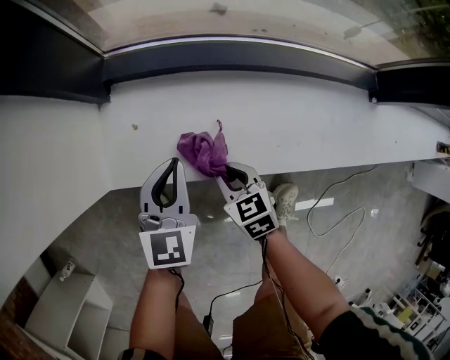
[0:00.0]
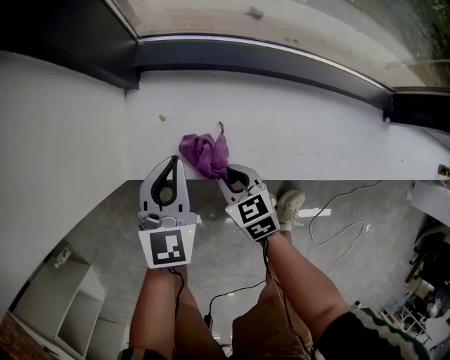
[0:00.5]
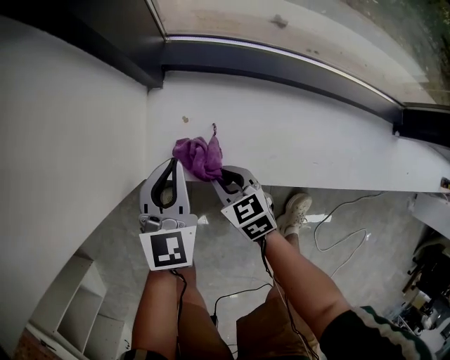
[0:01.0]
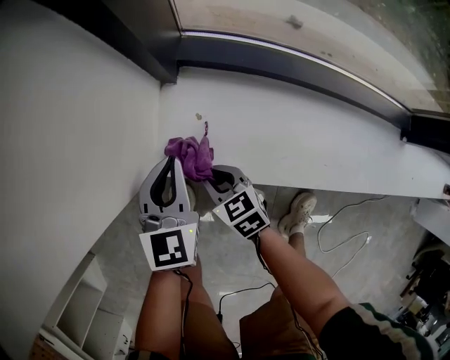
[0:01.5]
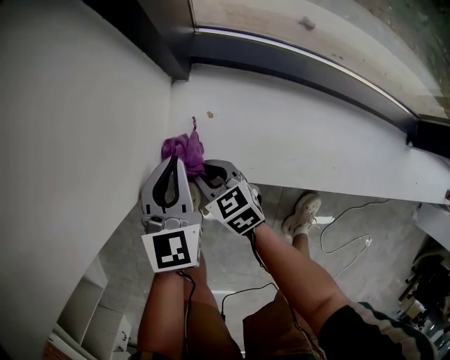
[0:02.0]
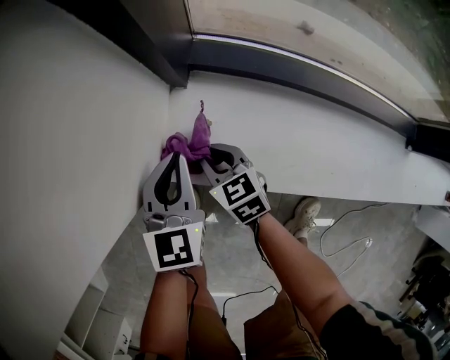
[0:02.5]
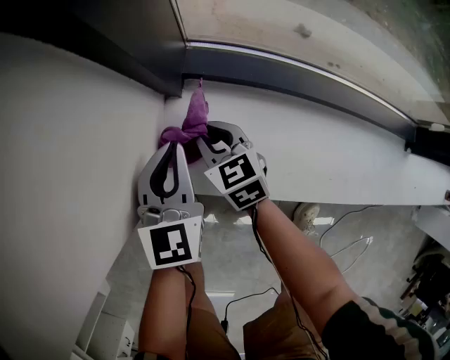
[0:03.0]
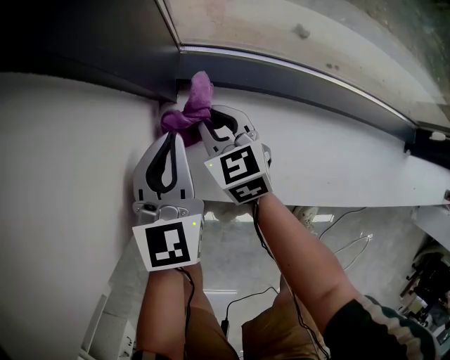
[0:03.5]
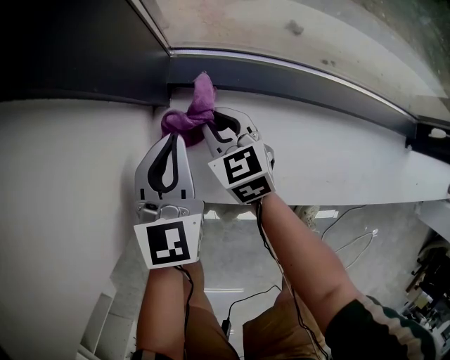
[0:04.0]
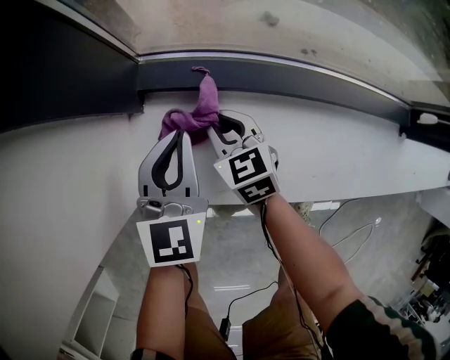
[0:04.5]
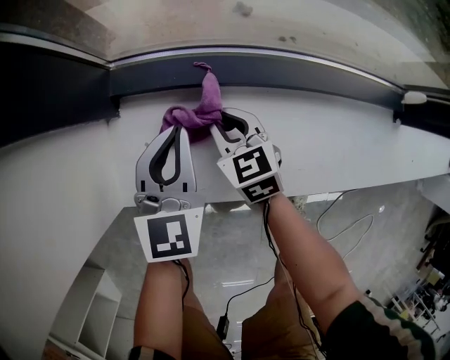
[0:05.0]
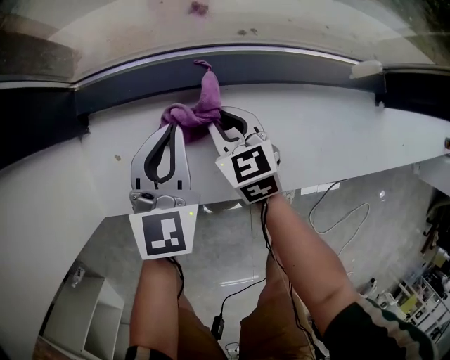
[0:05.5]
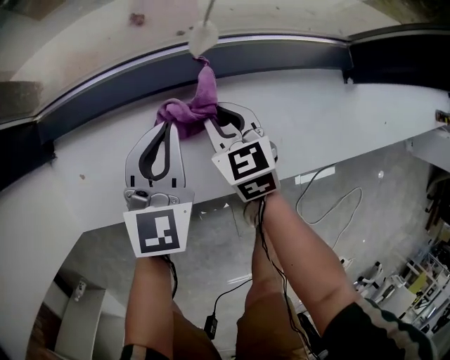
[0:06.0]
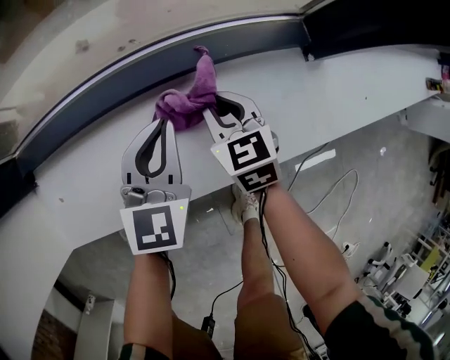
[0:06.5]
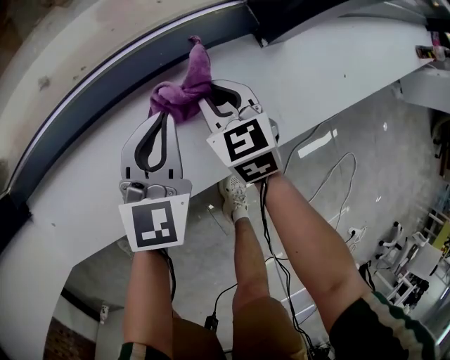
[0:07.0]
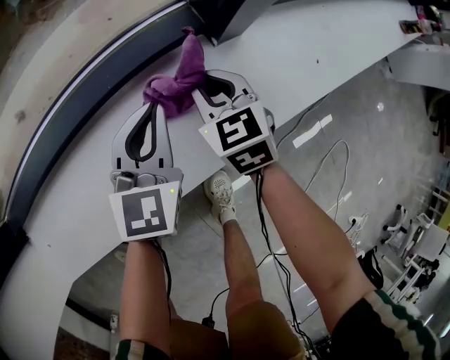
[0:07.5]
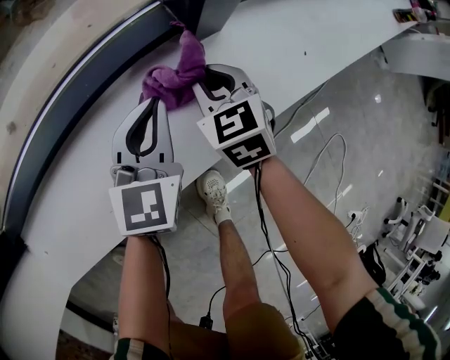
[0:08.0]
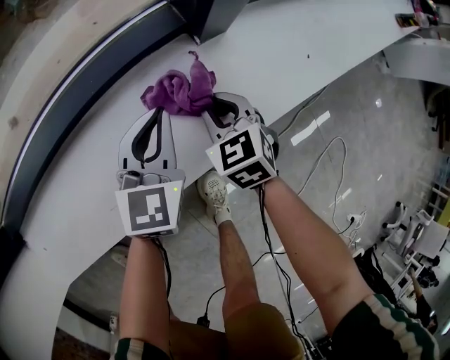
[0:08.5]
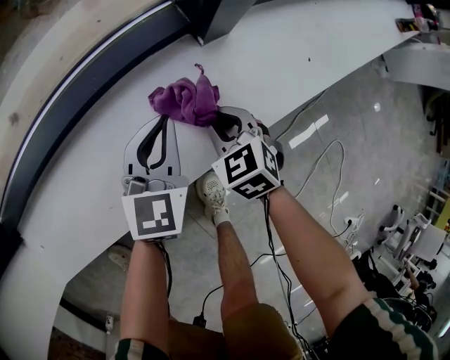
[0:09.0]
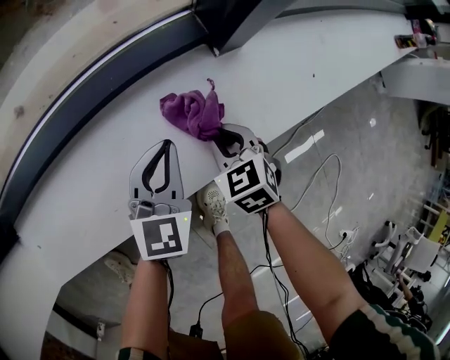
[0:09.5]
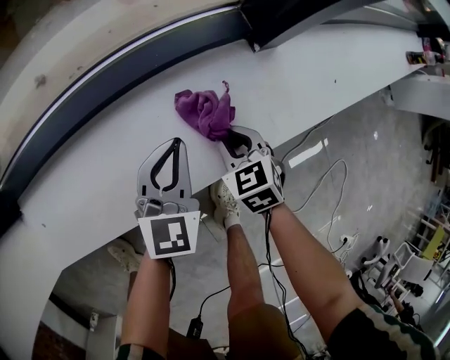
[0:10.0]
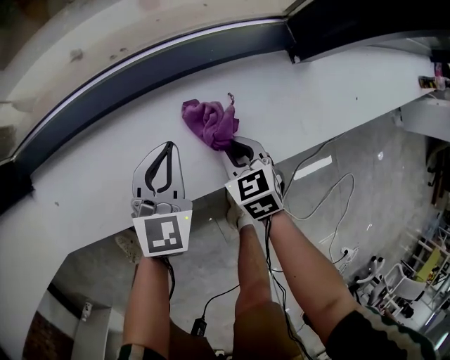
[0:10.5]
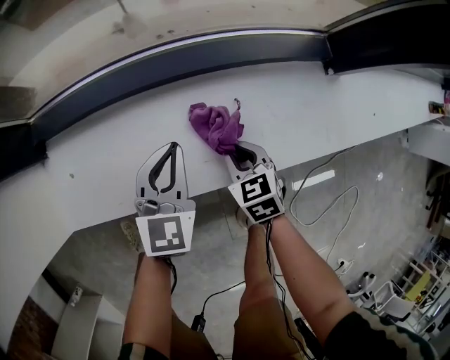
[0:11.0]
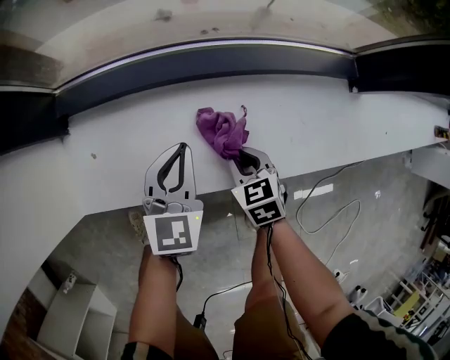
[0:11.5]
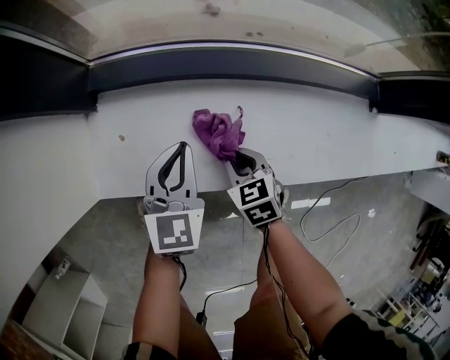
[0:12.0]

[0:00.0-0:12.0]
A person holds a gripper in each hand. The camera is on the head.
0:00.0 to 0:02.0: The grippers both shift to the left and forward by about 20 cm. The right gripper changes its angle by about 20 degrees.
0:02.0 to 0:04.0: The left gripper shifts some 10 cm forward and to the right. Meanwhile the right gripper goes some 20 cm forward and to the right.
0:04.0 to 0:06.0: The two grippers go some 30 cm to the right. The left gripper turns by roughly 20 degrees.
0:06.0 to 0:08.0: Both grippers move to the right, about 35 cm. The left gripper turns by about 20 degrees. Meanwhile the right gripper swivels approximately 20 degrees.
0:08.0 to 0:10.0: The right gripper shifts approximately 15 cm backward and to the left. Meanwhile the left gripper shifts approximately 15 cm to the left and backward.
0:10.0 to 0:12.0: The right gripper moves about 35 cm; the left gripper shifts by about 35 cm, and changes its angle by approximately 30 degrees.

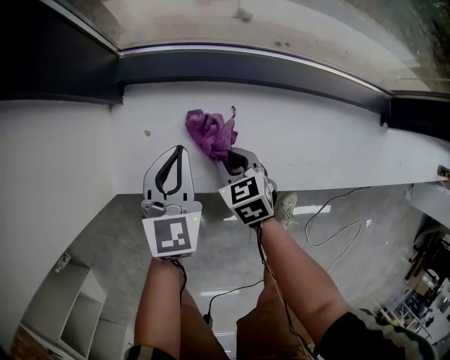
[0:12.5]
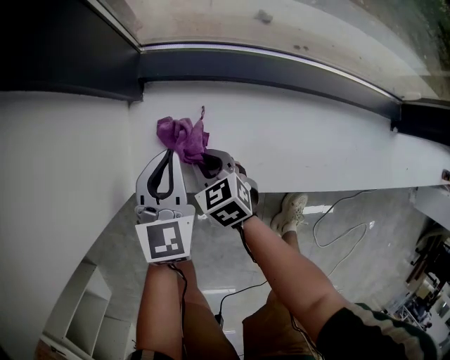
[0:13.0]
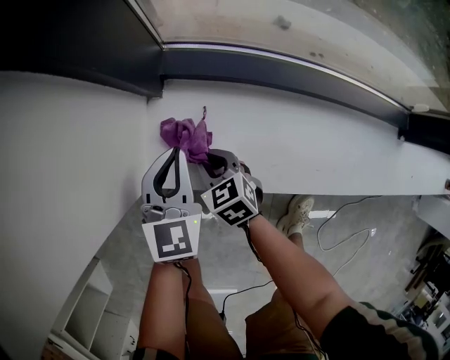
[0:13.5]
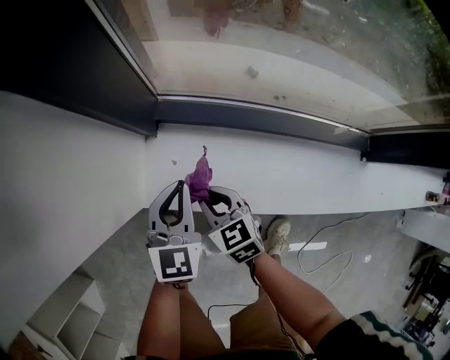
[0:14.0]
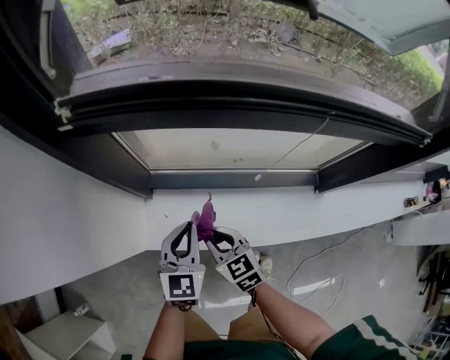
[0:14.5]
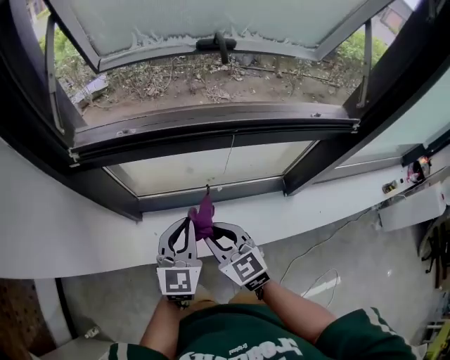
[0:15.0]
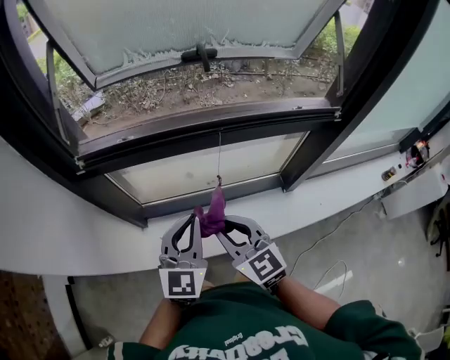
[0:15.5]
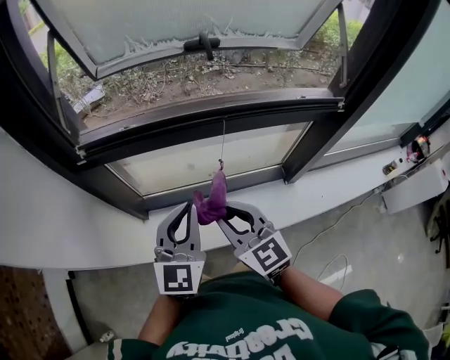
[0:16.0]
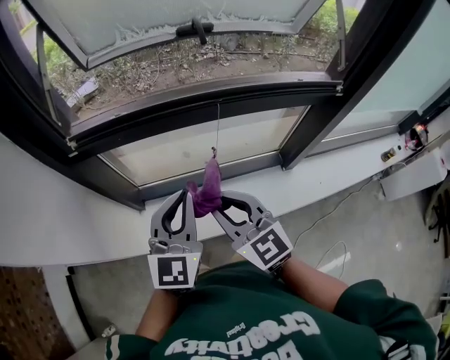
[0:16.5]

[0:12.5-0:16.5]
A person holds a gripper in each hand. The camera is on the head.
0:12.5 to 0:14.5: The two grippers go about 30 cm upward. The right gripper changes its angle by some 20 degrees.
0:14.5 to 0:16.5: The grippers both shift upward by approximately 25 cm. The right gripper rotates some 30 degrees. The left gripper swivels roughly 20 degrees.

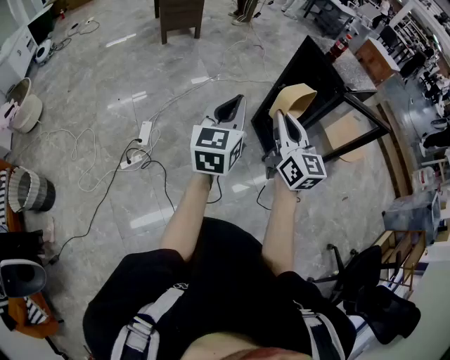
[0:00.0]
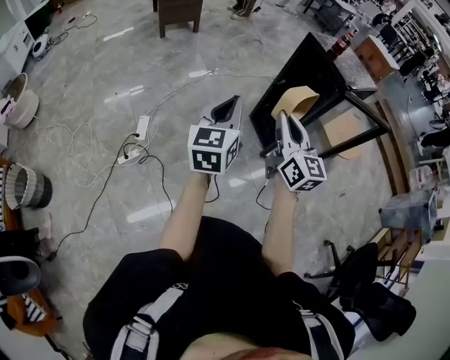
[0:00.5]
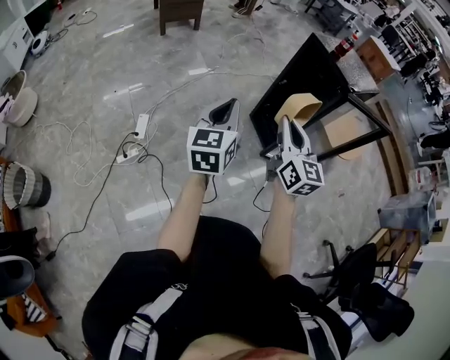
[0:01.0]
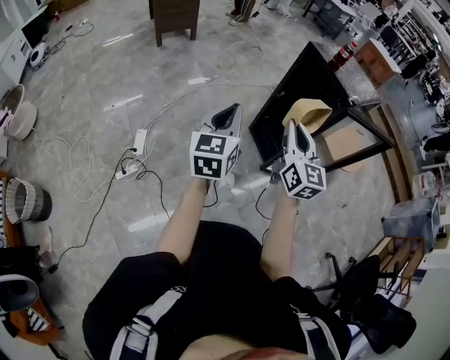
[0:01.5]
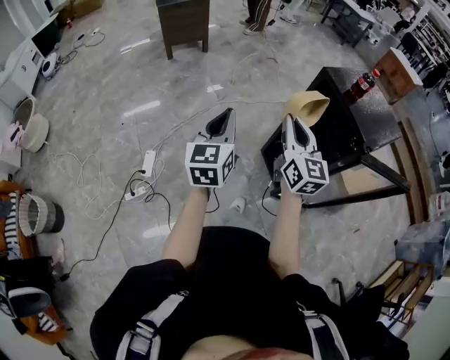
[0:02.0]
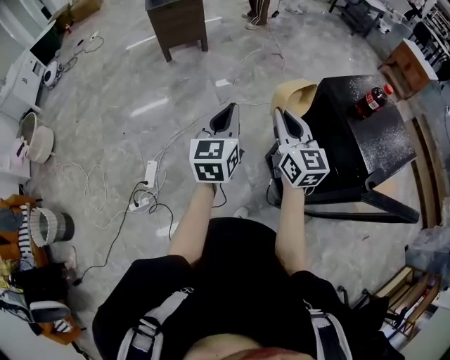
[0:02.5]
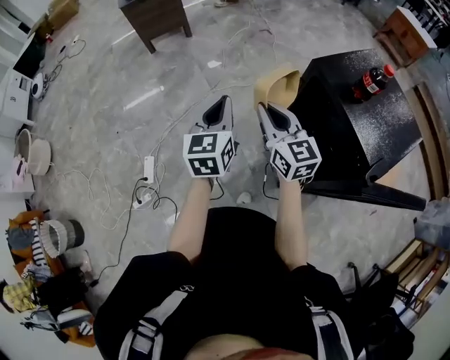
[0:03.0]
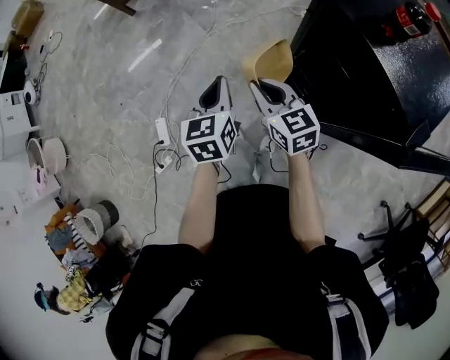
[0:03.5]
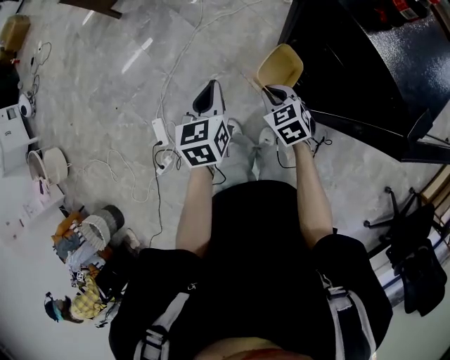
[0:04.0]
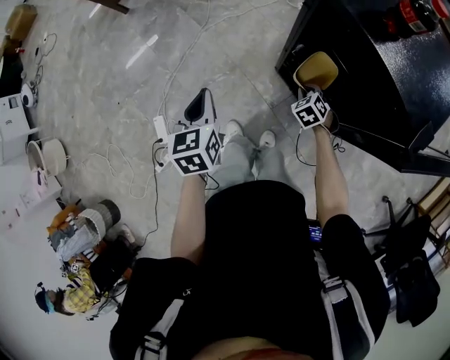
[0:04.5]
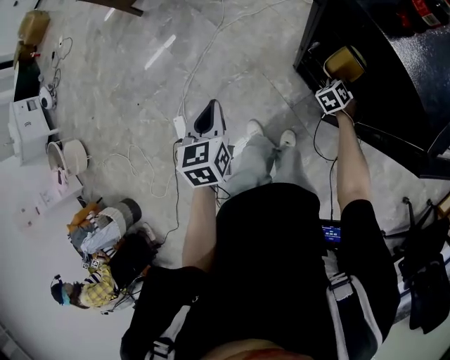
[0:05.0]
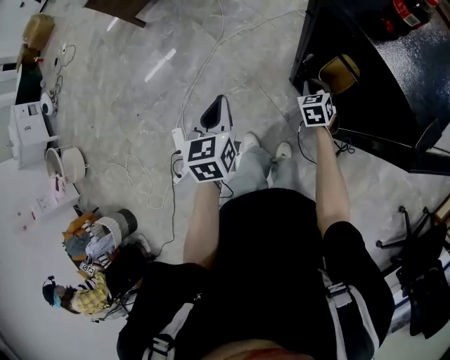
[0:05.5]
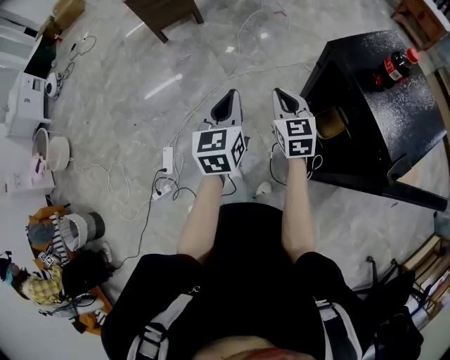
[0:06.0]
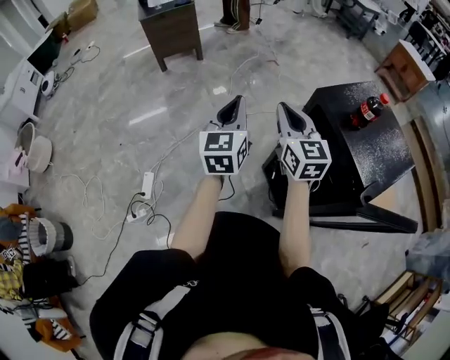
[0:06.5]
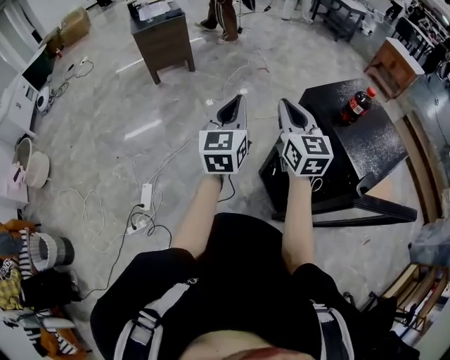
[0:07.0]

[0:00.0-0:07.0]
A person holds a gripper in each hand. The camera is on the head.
0:00.0 to 0:02.0: Both grippers travel together forward, about 30 cm.
0:02.0 to 0:03.5: The left gripper moves forward, downward and to the right, some 30 cm, and rotates about 20 degrees. The right gripper heads downward and forward, covering about 30 cm, and changes its angle by about 30 degrees.
0:03.5 to 0:05.0: The left gripper moves approximately 5 cm, while the right gripper heads downward and to the right, covering some 35 cm, and tilts its fingers some 40 degrees downward.
0:05.0 to 0:07.0: The right gripper is displaced upward by approximately 50 cm, and tips its fingers upward by some 60 degrees, while the left gripper goes some 25 cm upward, and angles its fingers upward, by approximately 40 degrees.

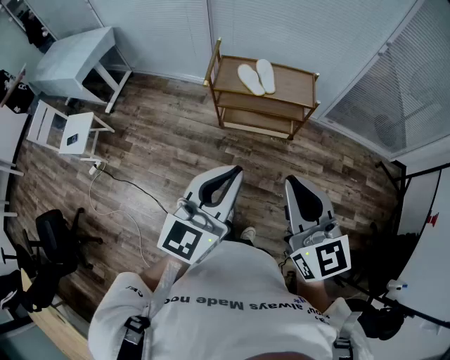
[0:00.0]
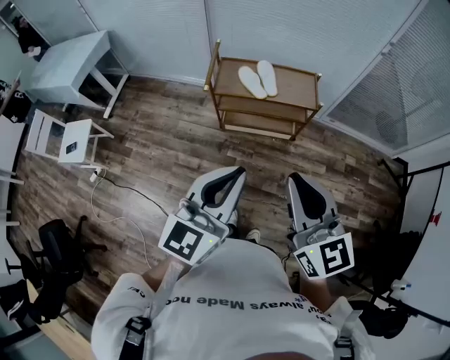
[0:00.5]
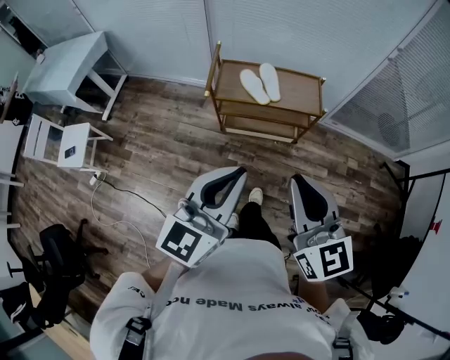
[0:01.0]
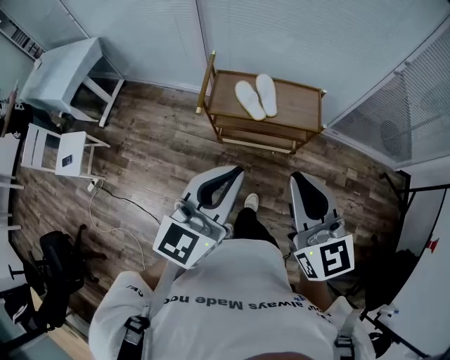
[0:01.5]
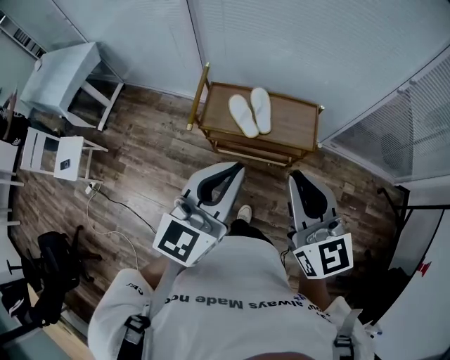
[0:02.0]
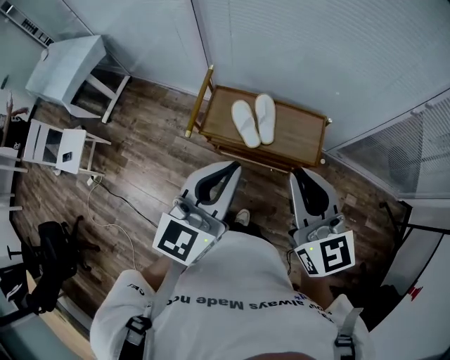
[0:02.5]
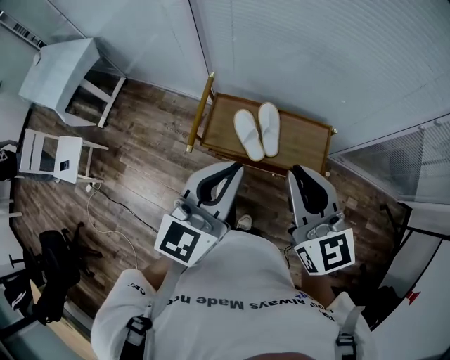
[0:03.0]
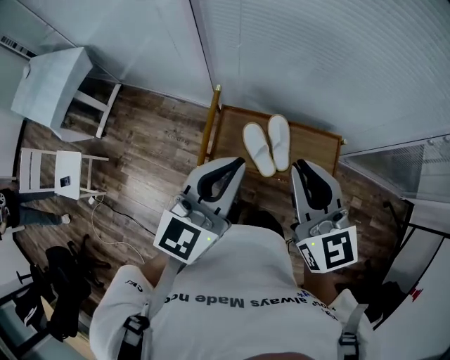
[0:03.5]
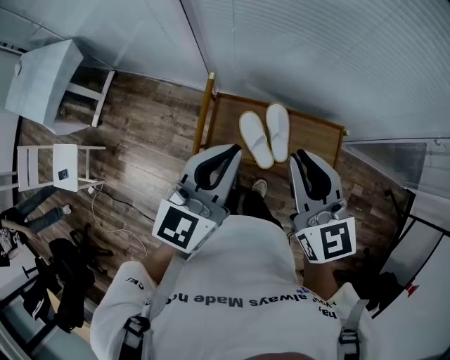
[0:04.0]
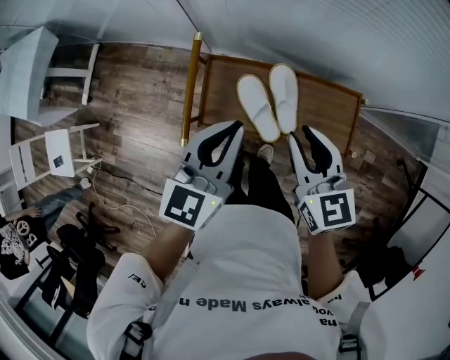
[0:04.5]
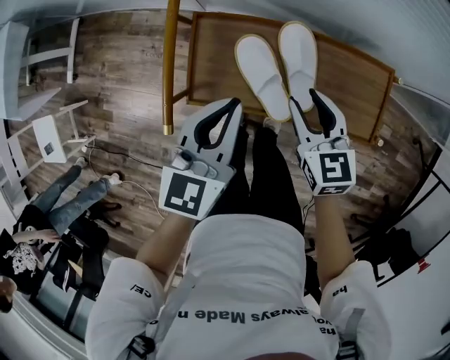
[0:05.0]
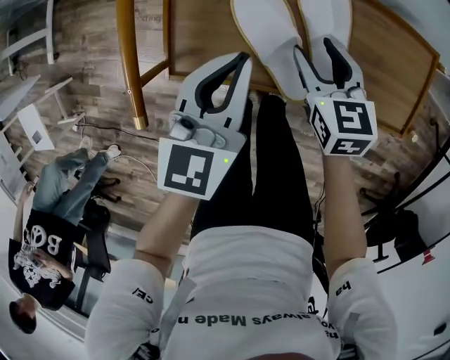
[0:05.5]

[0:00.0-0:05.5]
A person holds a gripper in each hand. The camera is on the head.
0:00.0 to 0:02.0: Both grippers move forward, roughly 30 cm.
0:02.0 to 0:03.5: The grippers both shift forward by approximately 25 cm.
0:03.5 to 0:05.5: The grippers both shift downward by approximately 50 cm. The right gripper tilts its fingers approximately 30 degrees downward, and opens; the left gripper turns by some 20 degrees.
